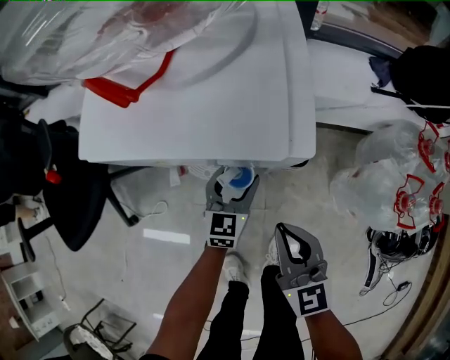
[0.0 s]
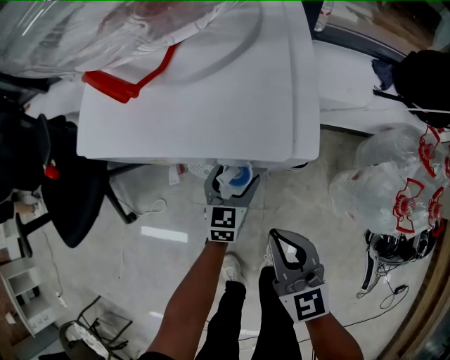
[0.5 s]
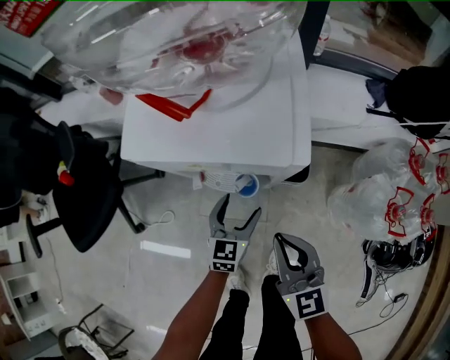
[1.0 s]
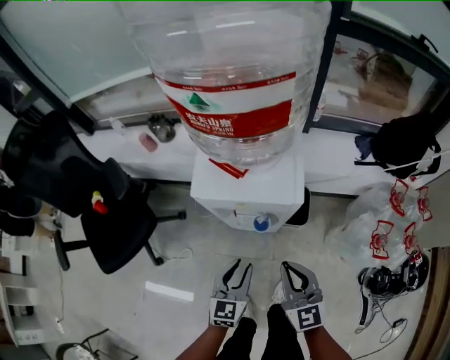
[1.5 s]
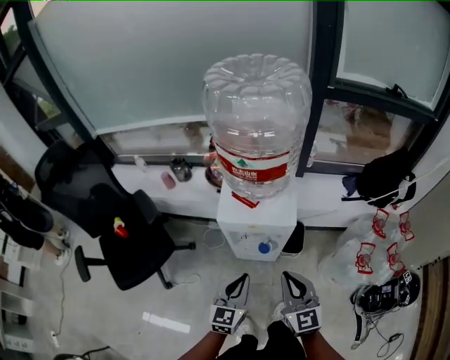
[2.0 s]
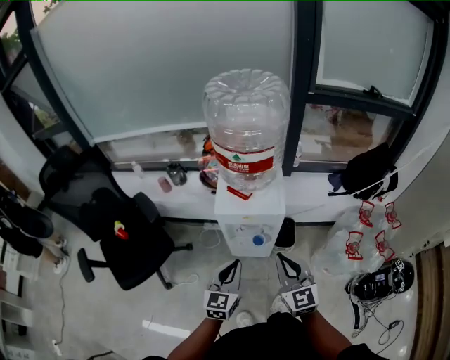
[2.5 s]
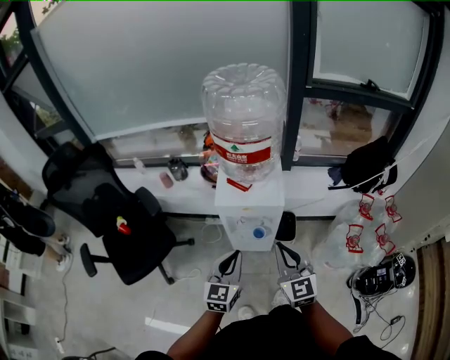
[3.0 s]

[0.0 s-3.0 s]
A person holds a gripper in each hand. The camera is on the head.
0.0 to 1.5 s: The right gripper shifts roughly 15 cm upward. The left gripper travels upward, backward and to the left by approximately 25 cm, and closes up.
1.5 to 3.0 s: The grippers both shift upward by some 20 cm.

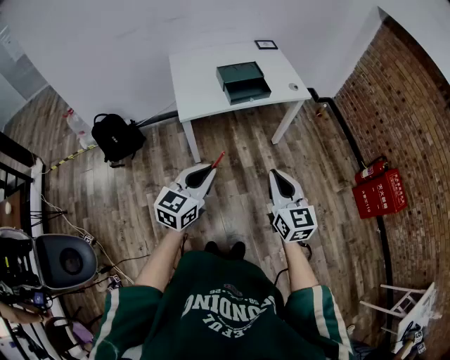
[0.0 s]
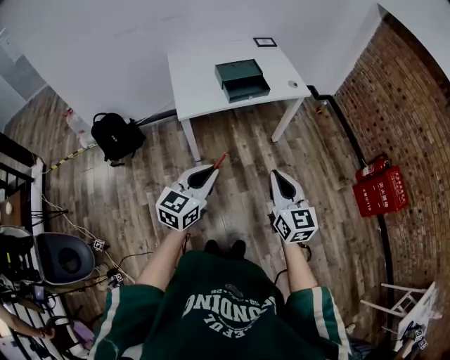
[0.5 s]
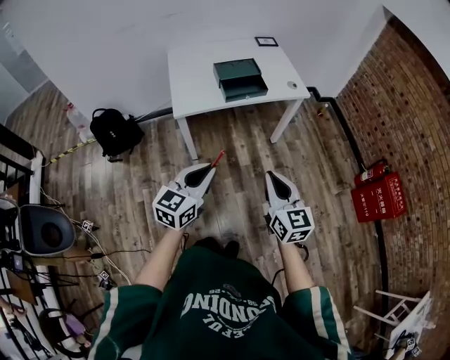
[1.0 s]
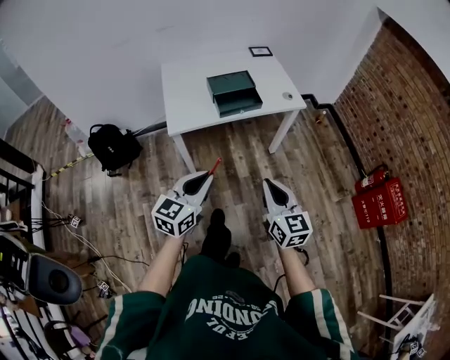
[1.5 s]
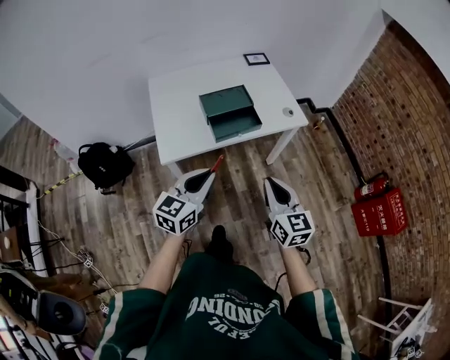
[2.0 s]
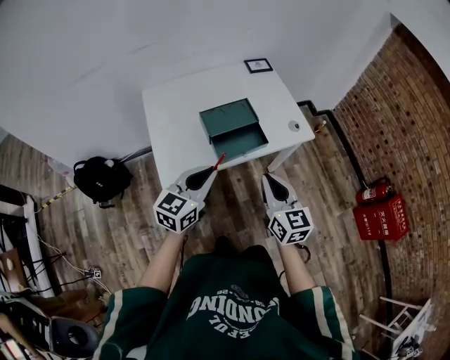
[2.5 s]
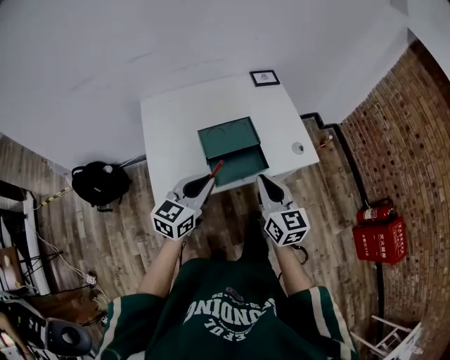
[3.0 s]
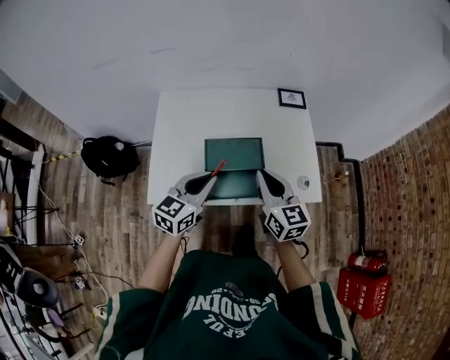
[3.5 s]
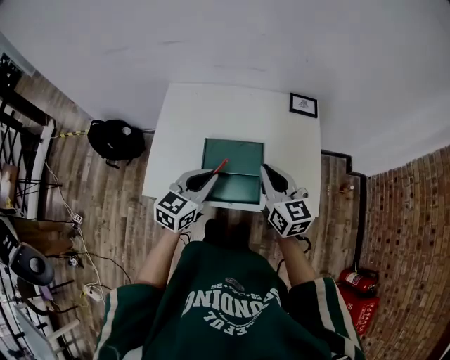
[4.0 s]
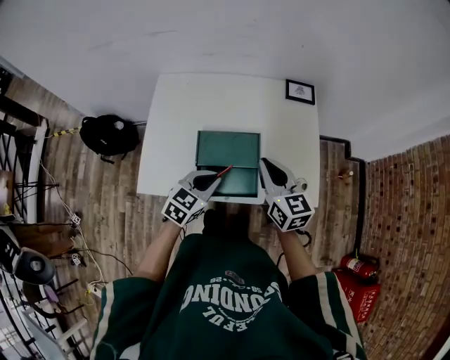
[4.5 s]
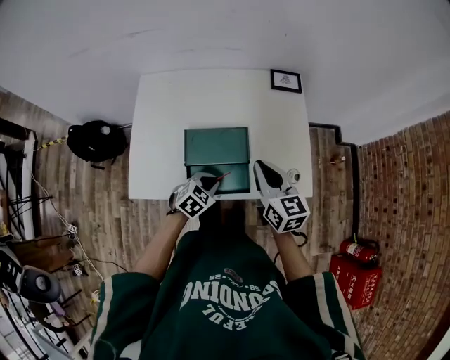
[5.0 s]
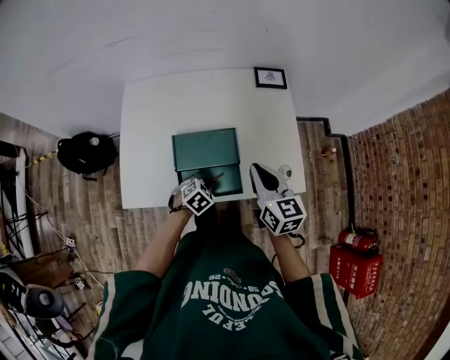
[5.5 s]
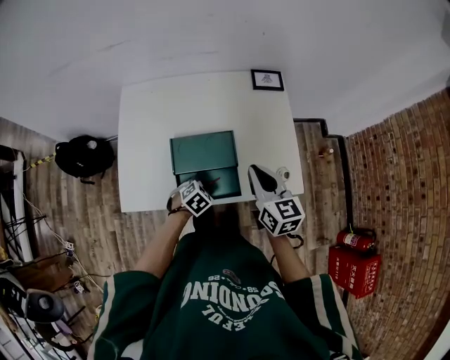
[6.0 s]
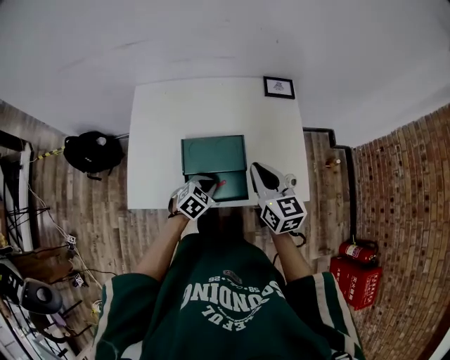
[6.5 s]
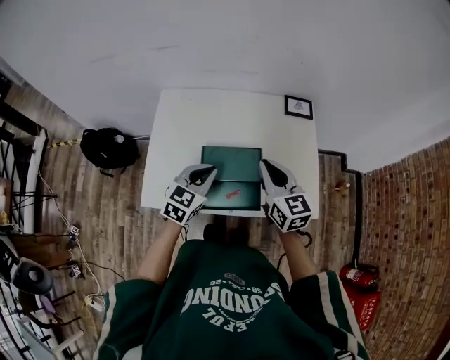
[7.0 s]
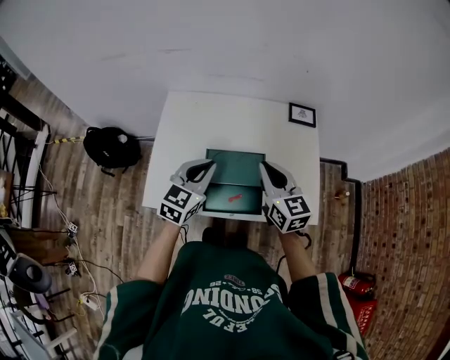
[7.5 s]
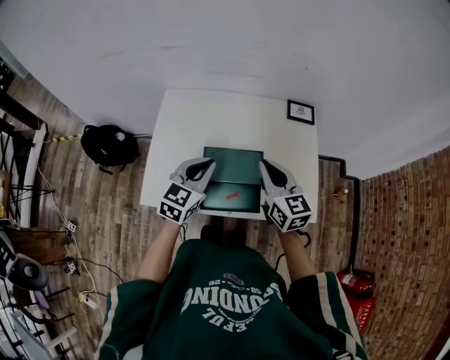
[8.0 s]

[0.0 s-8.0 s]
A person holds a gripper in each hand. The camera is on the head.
0.0 to 2.0 s: The grippers both shift forward by some 20 cm.
2.0 to 4.0 s: The left gripper changes place by approximately 30 cm, and swivels about 20 degrees, while the right gripper shifts by approximately 40 cm, and turns by roughly 30 degrees.
4.0 to 6.0 s: The right gripper goes about 5 cm to the right. Meanwhile the left gripper travels downward by some 25 cm, and angles its fingers downward, by about 40 degrees.
6.0 to 8.0 s: The left gripper is displaced upward by approximately 25 cm, and tilts its fingers approximately 40 degrees upward. Meanwhile the right gripper goes about 10 cm to the left and upward.

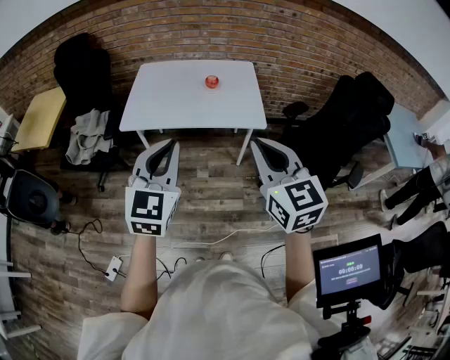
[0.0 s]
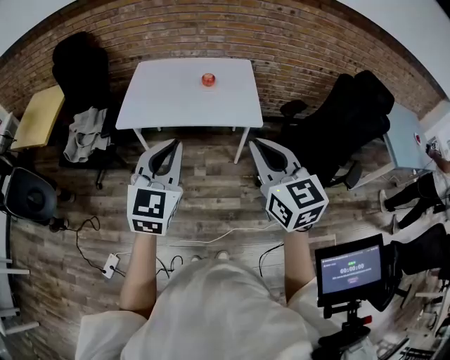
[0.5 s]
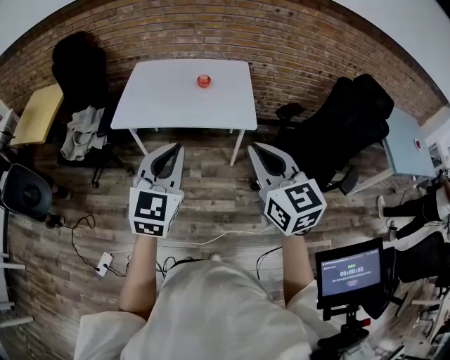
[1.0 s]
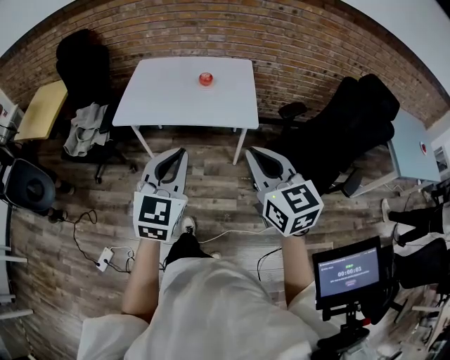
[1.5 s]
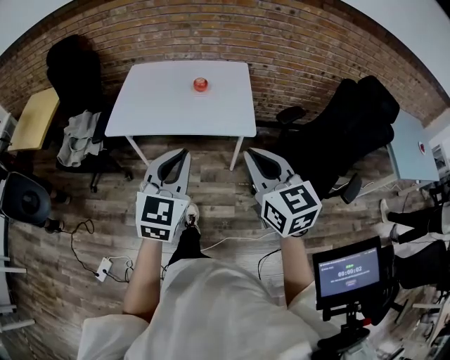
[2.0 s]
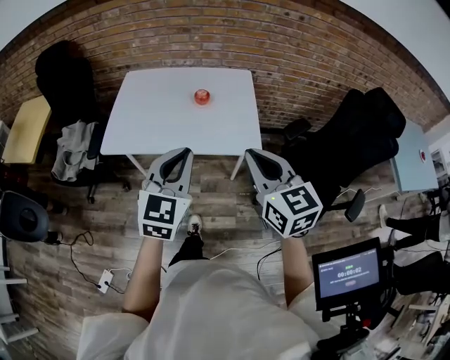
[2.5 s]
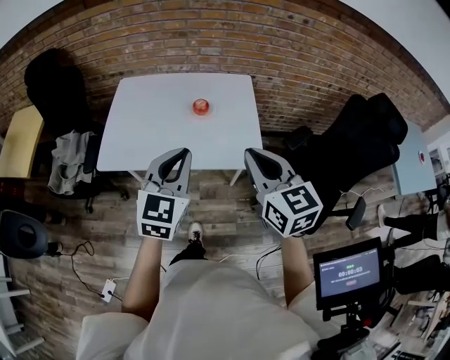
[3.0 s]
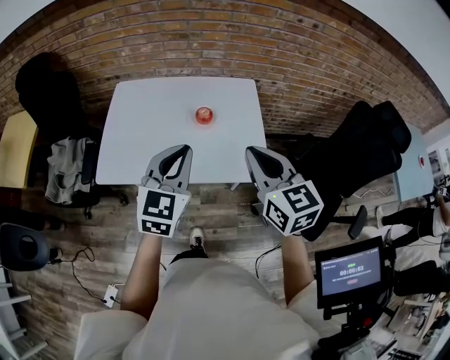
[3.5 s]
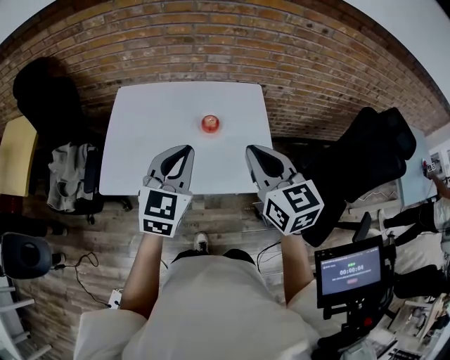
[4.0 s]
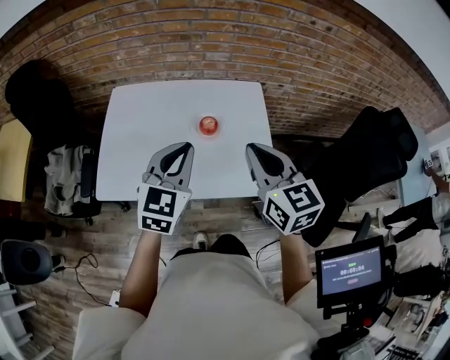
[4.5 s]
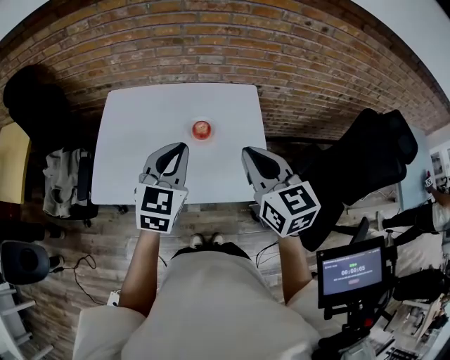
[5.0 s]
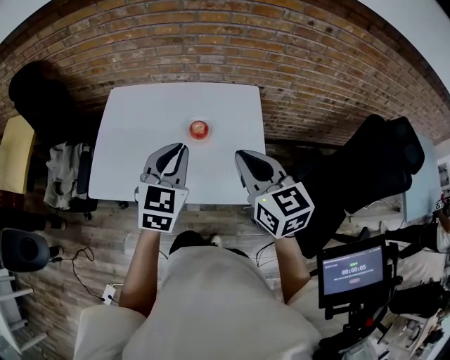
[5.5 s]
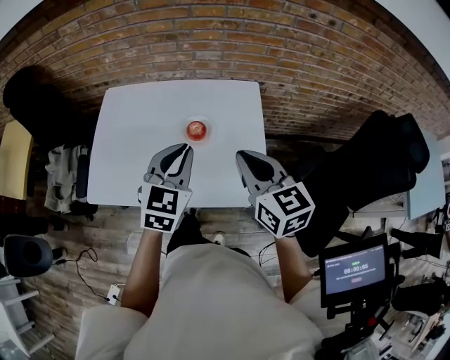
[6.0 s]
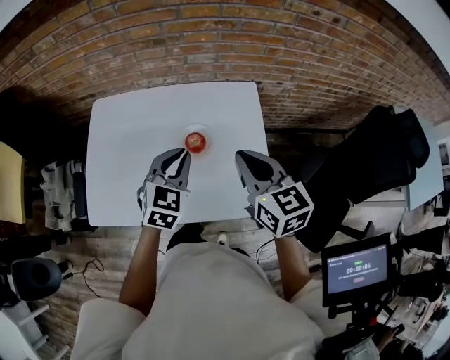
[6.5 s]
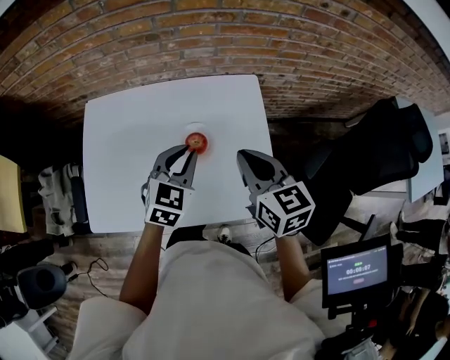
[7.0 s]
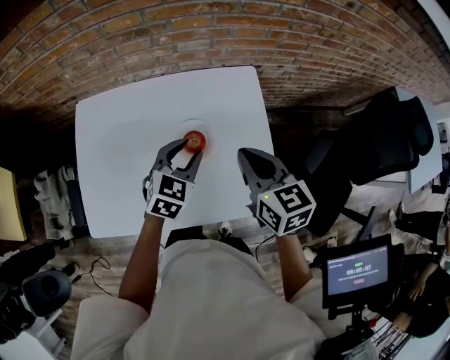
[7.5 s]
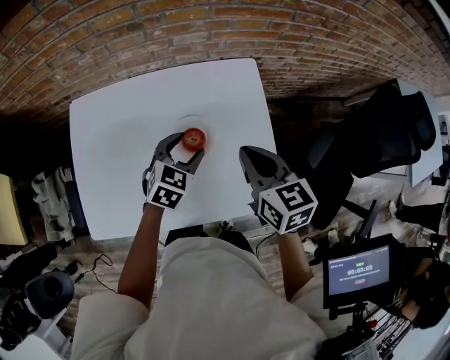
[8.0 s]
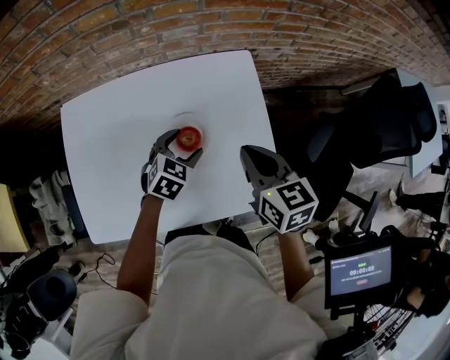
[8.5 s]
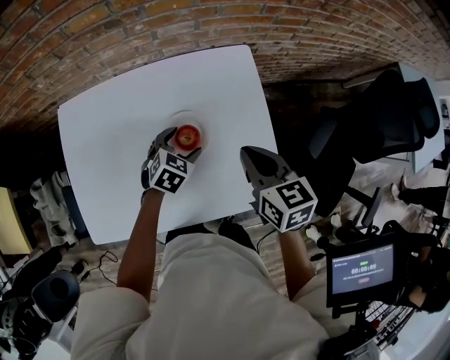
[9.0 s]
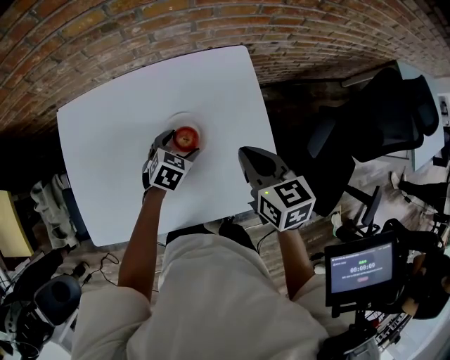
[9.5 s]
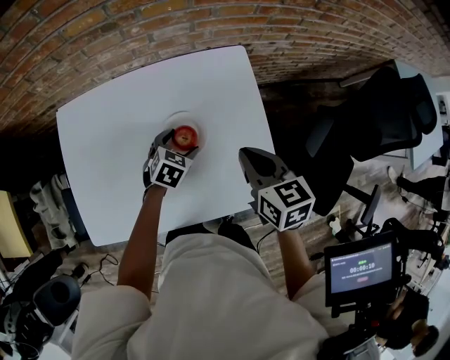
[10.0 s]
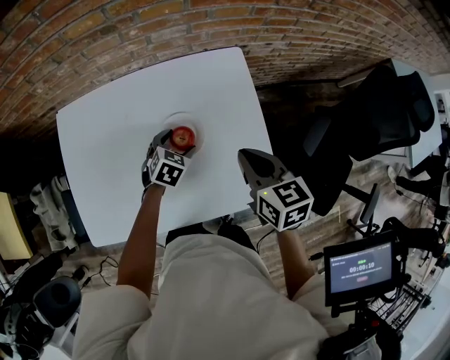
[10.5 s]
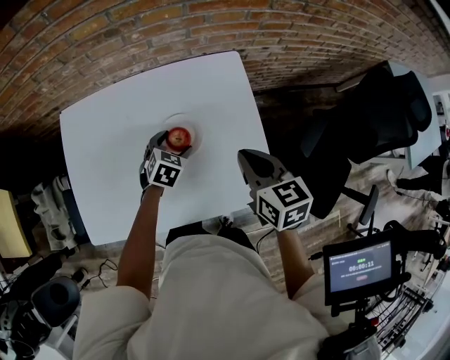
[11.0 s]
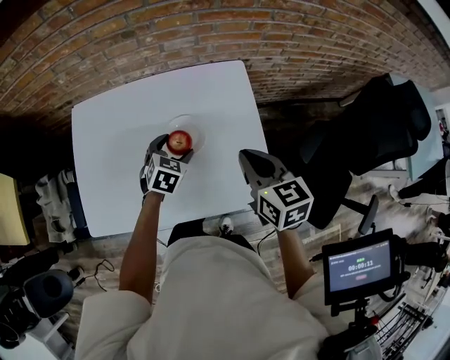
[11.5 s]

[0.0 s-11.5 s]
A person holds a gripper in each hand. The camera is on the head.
0.0 to 2.0 s: The left gripper moves to the right, about 10 cm; the right gripper shifts approximately 10 cm to the right, forward and downward.
2.0 to 4.0 s: The two grippers go approximately 35 cm forward.
4.0 to 6.0 s: The two grippers go roughly 10 cm forward, to the right and downward.
6.0 to 7.5 s: The left gripper travels downward and forward by approximately 20 cm, and rotates approximately 20 degrees, while the right gripper shifts about 15 cm forward and downward.
7.5 to 9.5 s: The left gripper is displaced downward by approximately 15 cm, swivels some 20 degrees, and opens its fingers; the right gripper moves downward, roughly 5 cm.
9.5 to 11.5 s: The right gripper shifts by roughly 5 cm. Meanwhile the left gripper moves upward, some 5 cm.

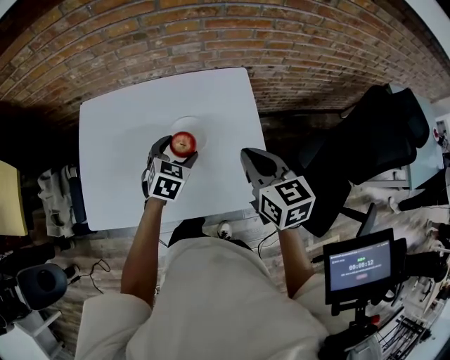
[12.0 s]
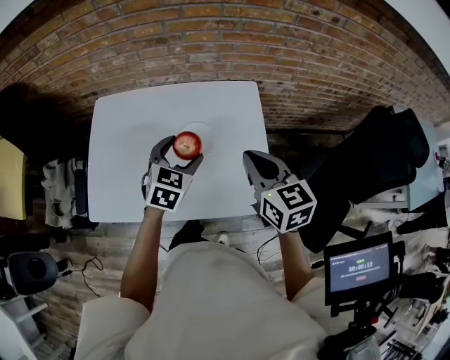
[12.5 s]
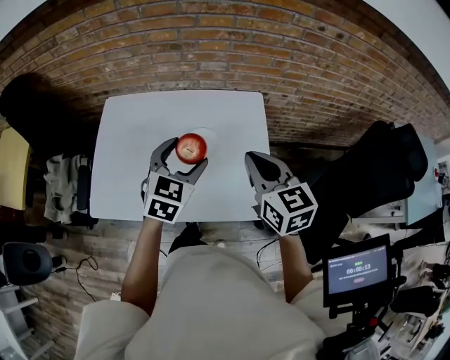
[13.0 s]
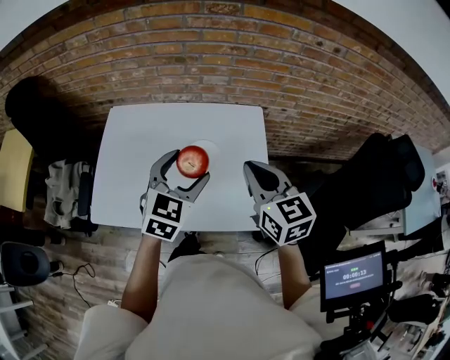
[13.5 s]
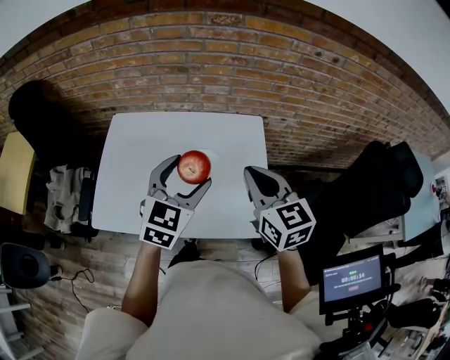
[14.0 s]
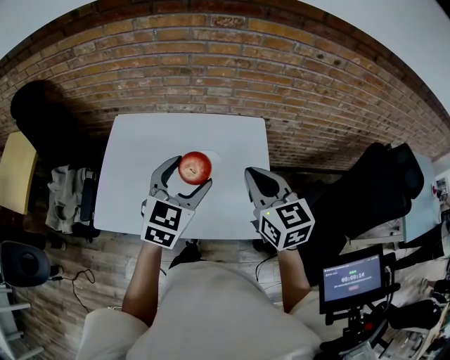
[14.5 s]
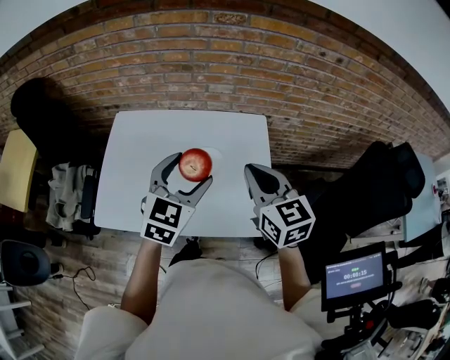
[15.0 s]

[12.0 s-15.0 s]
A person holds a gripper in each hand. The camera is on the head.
12.0 to 13.5 s: The left gripper shifts about 20 cm upward and backward, and turns by about 20 degrees, while the right gripper travels upward by approximately 10 cm.
13.5 to 15.0 s: The grippers make only small movements.
